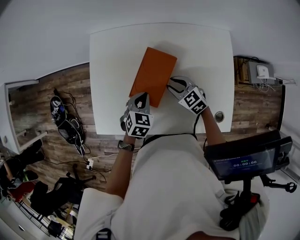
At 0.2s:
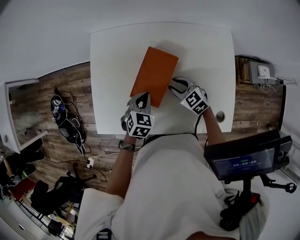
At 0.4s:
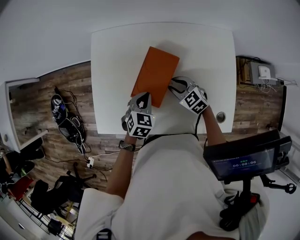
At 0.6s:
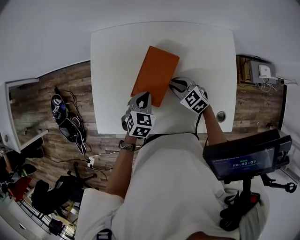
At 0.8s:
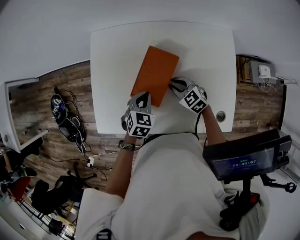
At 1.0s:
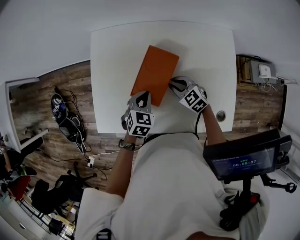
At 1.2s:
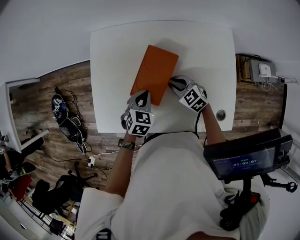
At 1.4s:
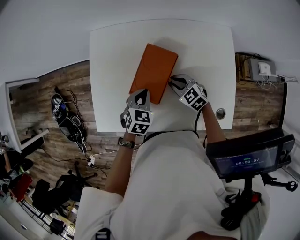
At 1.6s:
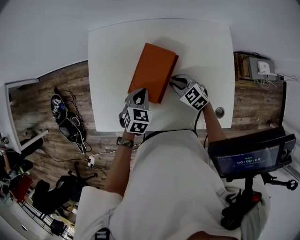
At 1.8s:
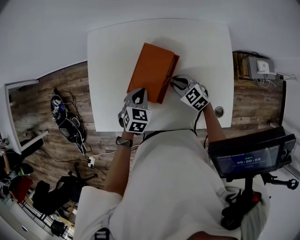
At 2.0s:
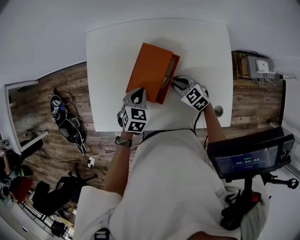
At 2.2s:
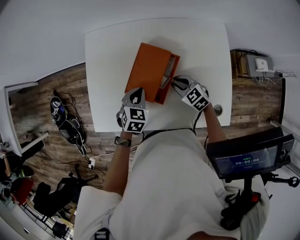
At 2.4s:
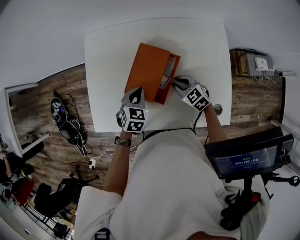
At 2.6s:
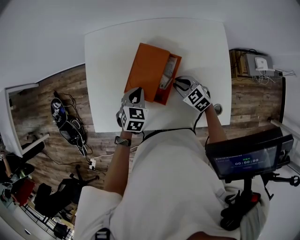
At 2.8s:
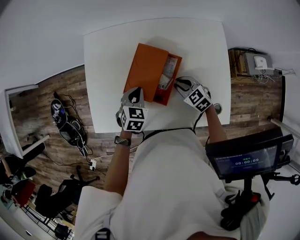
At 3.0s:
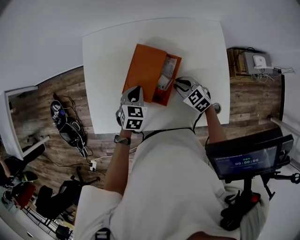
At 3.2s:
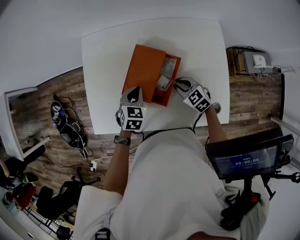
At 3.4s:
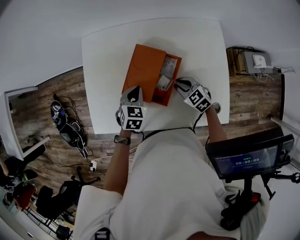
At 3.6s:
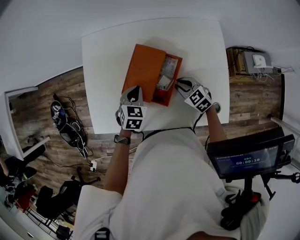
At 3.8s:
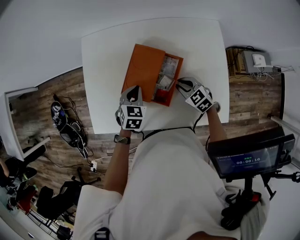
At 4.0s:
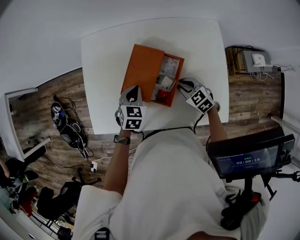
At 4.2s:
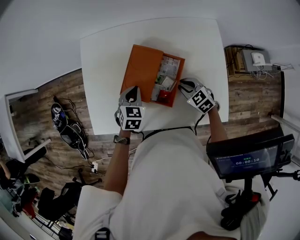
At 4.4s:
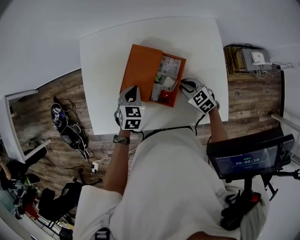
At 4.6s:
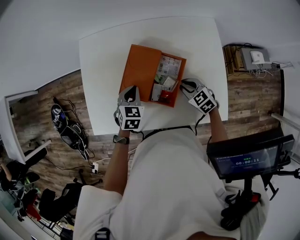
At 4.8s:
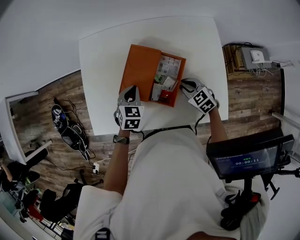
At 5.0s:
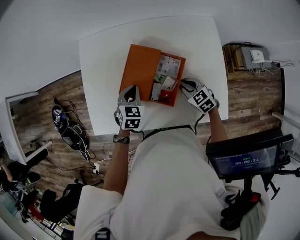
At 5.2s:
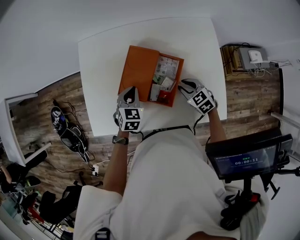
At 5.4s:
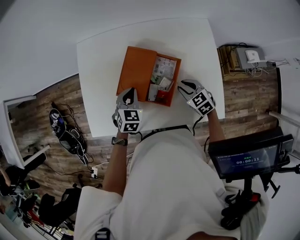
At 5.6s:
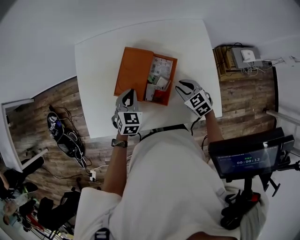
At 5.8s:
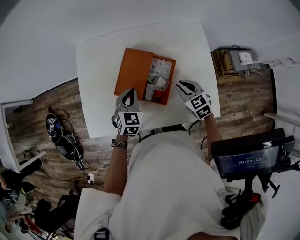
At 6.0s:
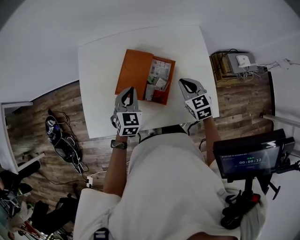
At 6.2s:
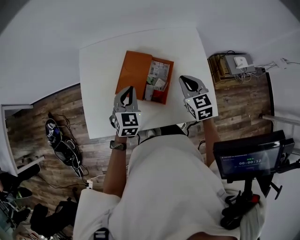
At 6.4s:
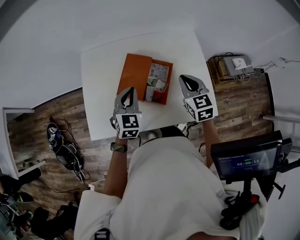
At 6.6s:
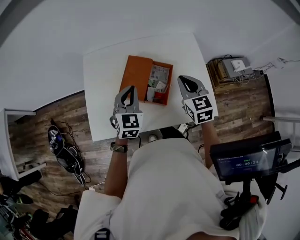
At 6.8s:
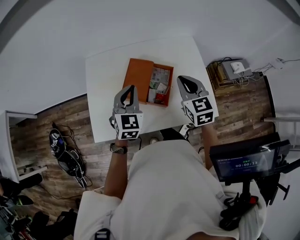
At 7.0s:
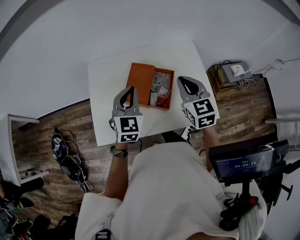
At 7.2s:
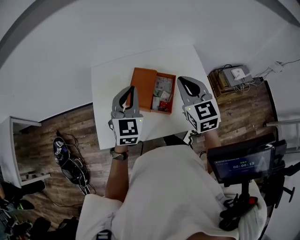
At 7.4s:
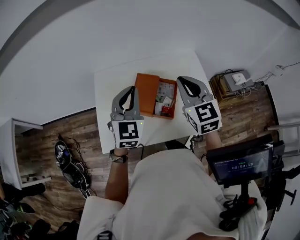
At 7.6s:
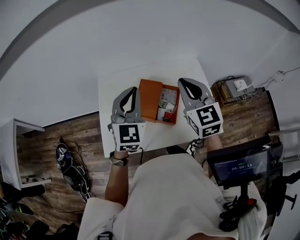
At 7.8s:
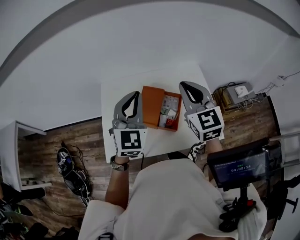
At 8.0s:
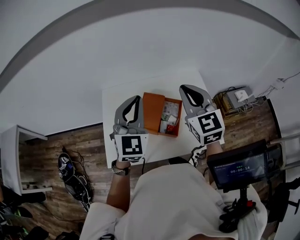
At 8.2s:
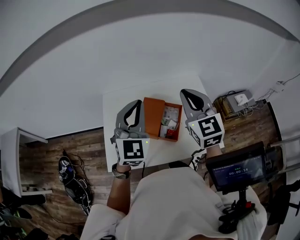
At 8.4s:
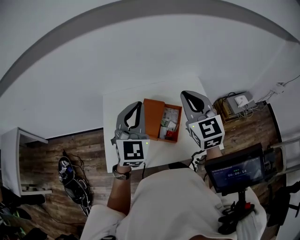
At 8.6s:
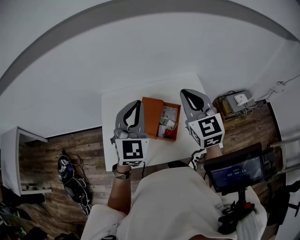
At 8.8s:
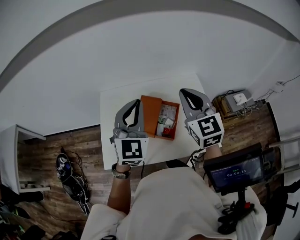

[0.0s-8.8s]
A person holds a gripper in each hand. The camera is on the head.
0.0s to 1.4s: The grippers move only a little.
1.4s to 3.0s: The right gripper shifts by some 5 cm.
3.0s to 4.4s: There are only small adjustments of the grippers.
4.4s to 5.8s: The right gripper goes some 10 cm upward. Meanwhile the left gripper goes some 5 cm upward.
5.8s to 7.4s: The grippers both shift upward by approximately 30 cm. The left gripper swivels roughly 30 degrees, while the right gripper changes its angle by approximately 30 degrees.
7.4s to 8.8s: The two grippers go roughly 5 cm upward.

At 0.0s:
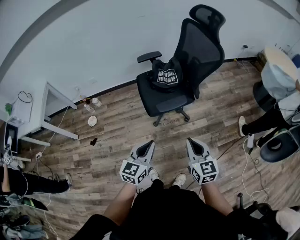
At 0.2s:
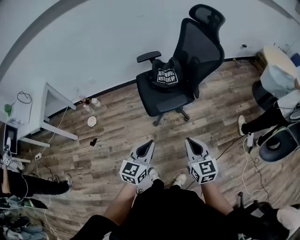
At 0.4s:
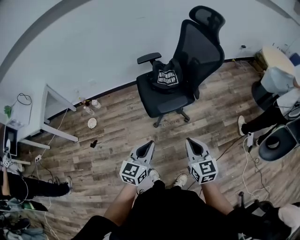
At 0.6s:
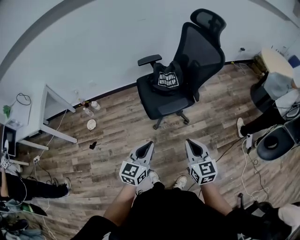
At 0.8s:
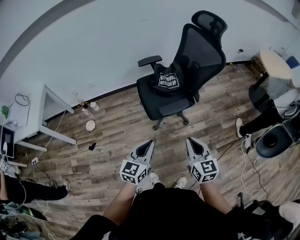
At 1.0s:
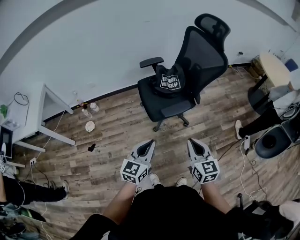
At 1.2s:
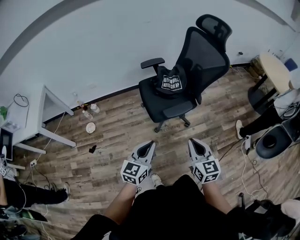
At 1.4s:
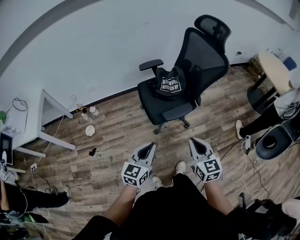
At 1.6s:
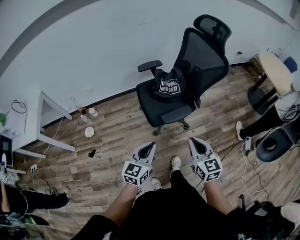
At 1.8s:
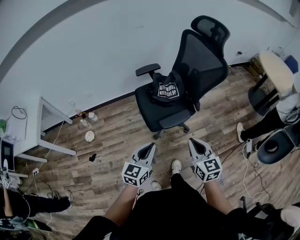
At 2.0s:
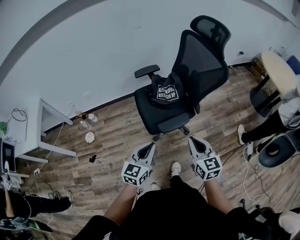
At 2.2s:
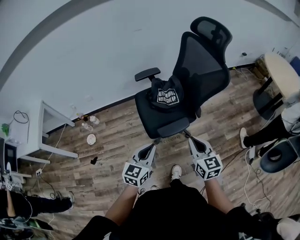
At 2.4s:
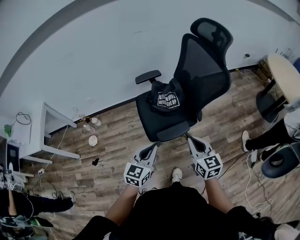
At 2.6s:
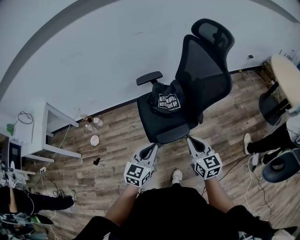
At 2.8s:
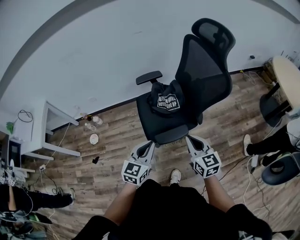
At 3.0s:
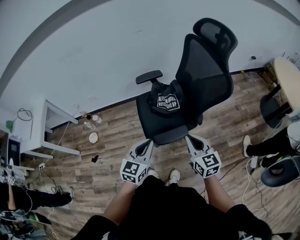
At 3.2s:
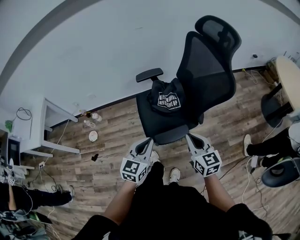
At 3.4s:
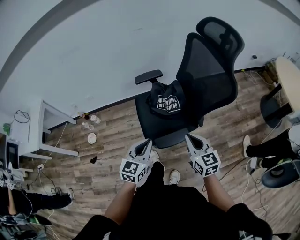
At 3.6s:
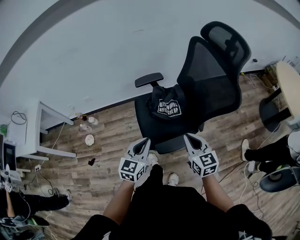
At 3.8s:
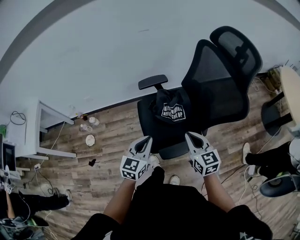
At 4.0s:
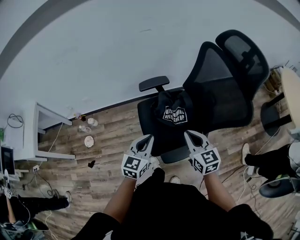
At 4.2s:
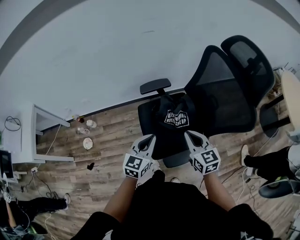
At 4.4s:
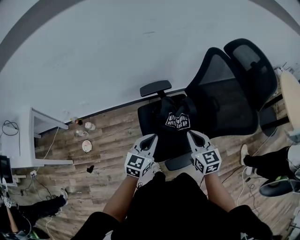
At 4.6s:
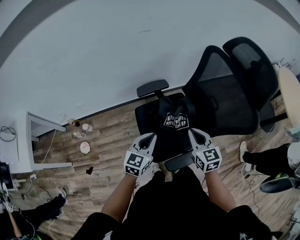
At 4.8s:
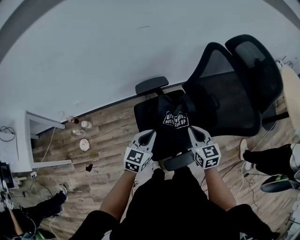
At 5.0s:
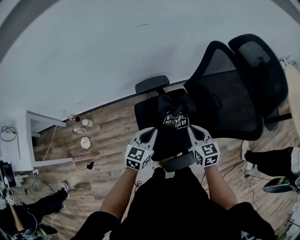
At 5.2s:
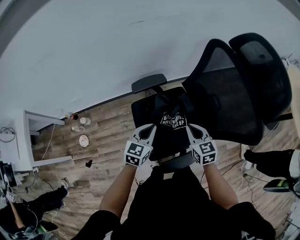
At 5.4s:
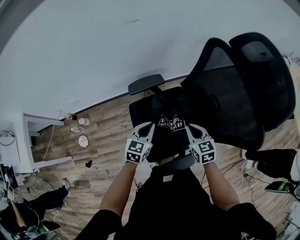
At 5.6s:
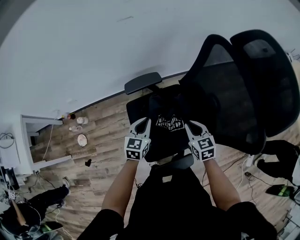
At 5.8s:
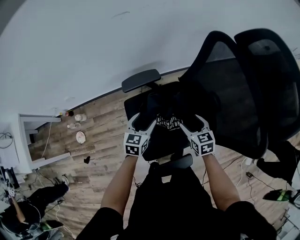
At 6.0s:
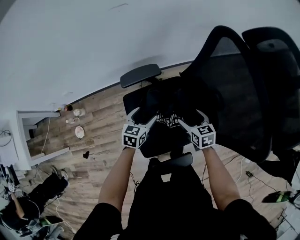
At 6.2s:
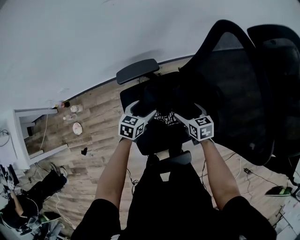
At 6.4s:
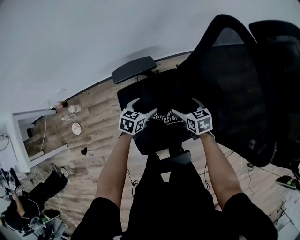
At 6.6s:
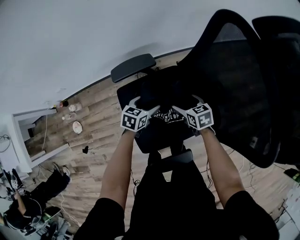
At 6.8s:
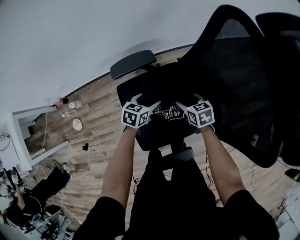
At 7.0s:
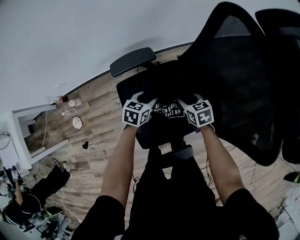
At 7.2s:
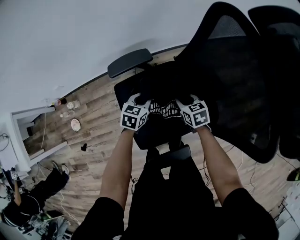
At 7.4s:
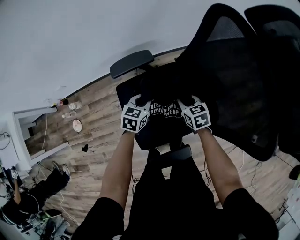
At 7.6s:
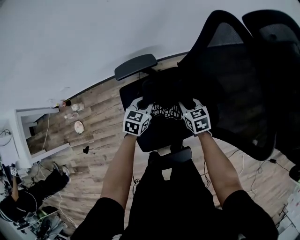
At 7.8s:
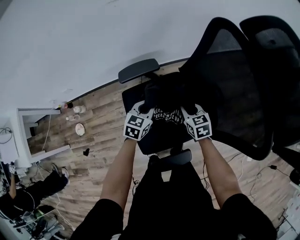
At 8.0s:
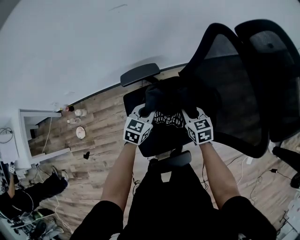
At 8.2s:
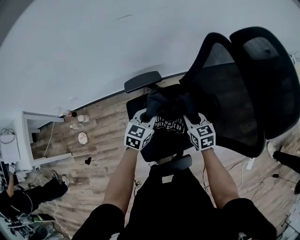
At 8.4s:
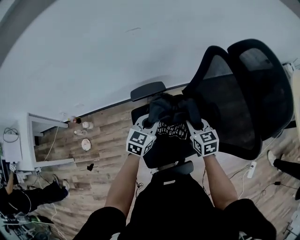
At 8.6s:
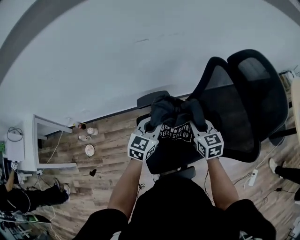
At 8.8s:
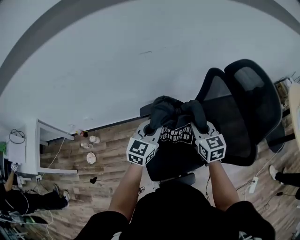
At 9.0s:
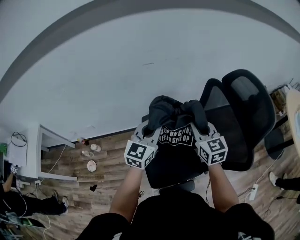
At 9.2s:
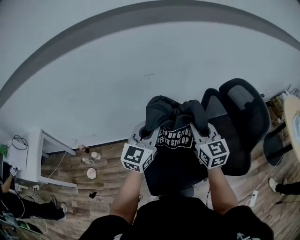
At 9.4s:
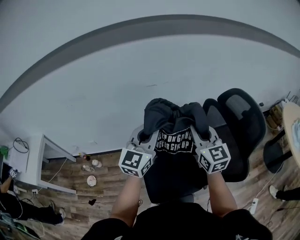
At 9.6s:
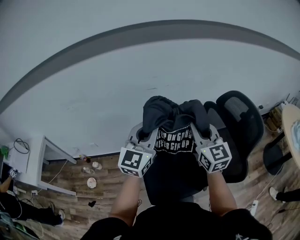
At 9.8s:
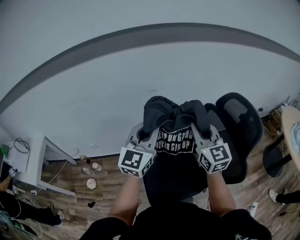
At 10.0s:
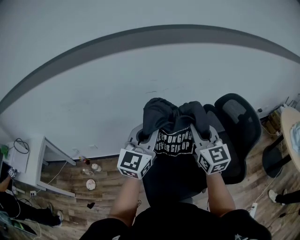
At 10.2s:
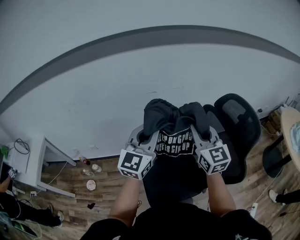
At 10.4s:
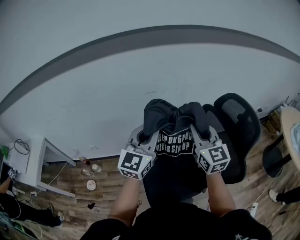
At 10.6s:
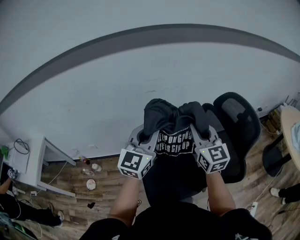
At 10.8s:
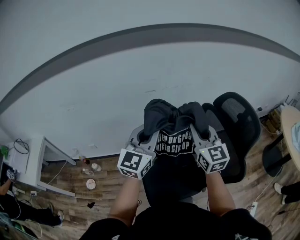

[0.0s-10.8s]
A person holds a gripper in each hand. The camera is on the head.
0.0s to 1.6s: Both grippers travel together to the left and forward, roughly 10 cm.
1.6s to 3.0s: The left gripper is displaced forward and to the right by about 20 cm, while the right gripper travels forward by about 20 cm.
3.0s to 4.6s: The grippers both shift forward by approximately 25 cm.
4.6s to 6.2s: The two grippers go about 25 cm downward and forward. The left gripper rotates about 20 degrees, and opens its fingers; the right gripper swivels about 30 degrees, and opens up.
6.2s to 7.8s: The left gripper closes up, while the right gripper closes its fingers.
7.8s to 9.2s: Both grippers travel together upward, approximately 40 cm. The right gripper tips its fingers upward by about 40 degrees. Meanwhile the left gripper tilts its fingers some 40 degrees upward.
9.2s to 10.8s: The grippers both shift upward by about 10 cm.

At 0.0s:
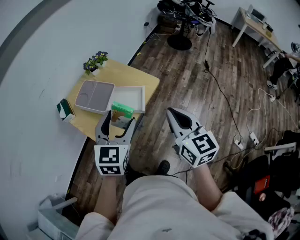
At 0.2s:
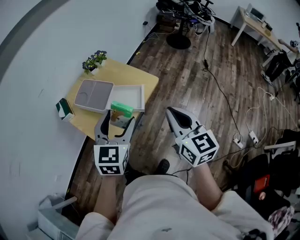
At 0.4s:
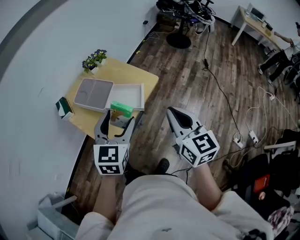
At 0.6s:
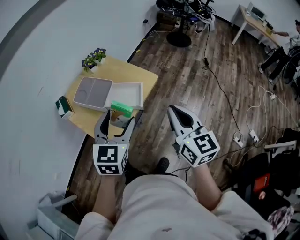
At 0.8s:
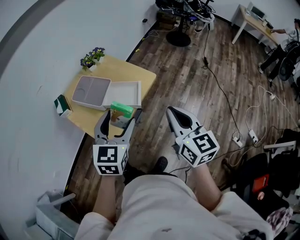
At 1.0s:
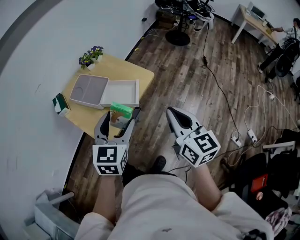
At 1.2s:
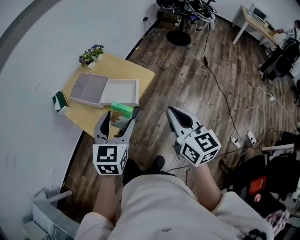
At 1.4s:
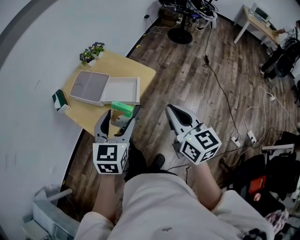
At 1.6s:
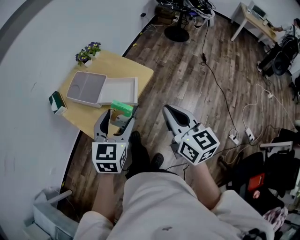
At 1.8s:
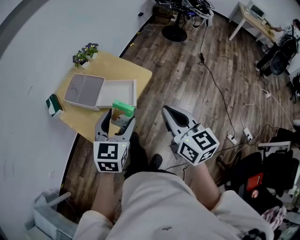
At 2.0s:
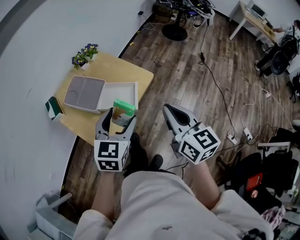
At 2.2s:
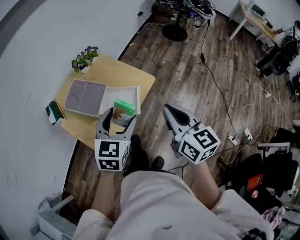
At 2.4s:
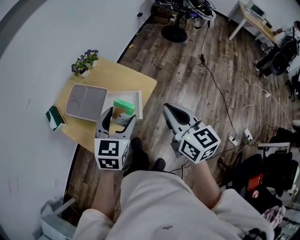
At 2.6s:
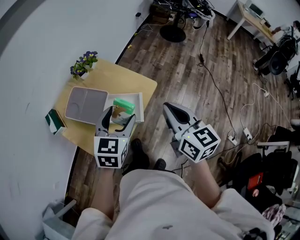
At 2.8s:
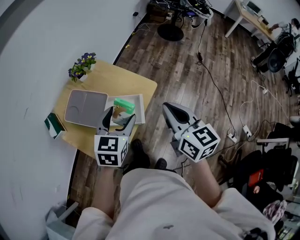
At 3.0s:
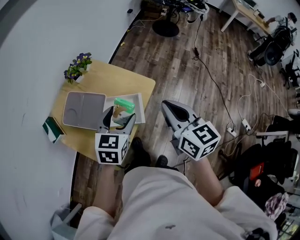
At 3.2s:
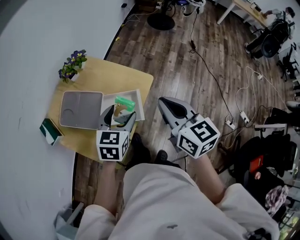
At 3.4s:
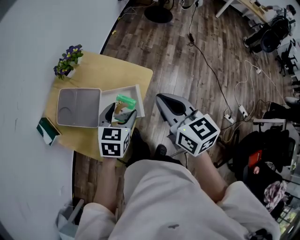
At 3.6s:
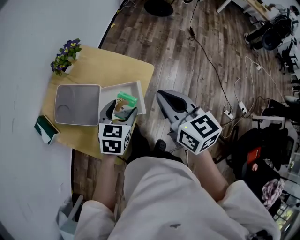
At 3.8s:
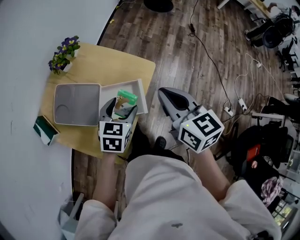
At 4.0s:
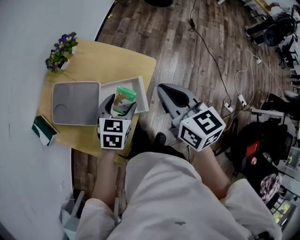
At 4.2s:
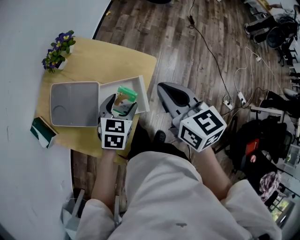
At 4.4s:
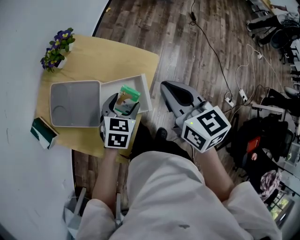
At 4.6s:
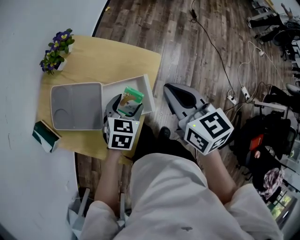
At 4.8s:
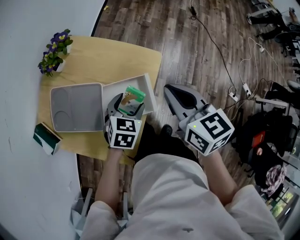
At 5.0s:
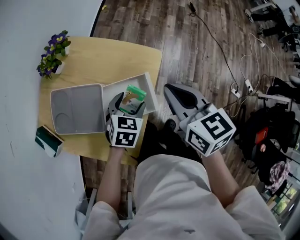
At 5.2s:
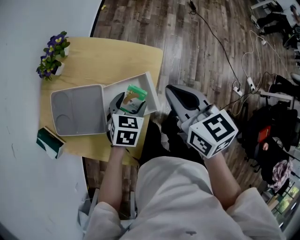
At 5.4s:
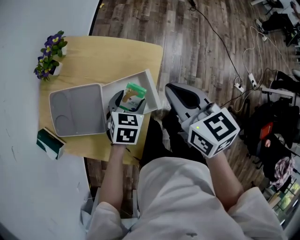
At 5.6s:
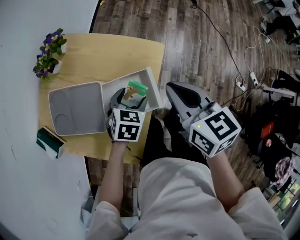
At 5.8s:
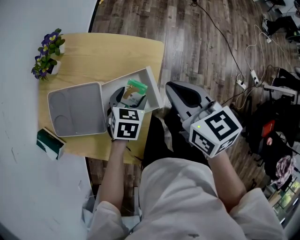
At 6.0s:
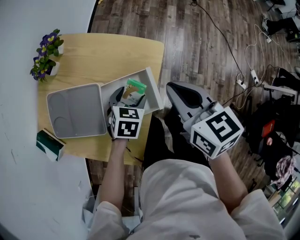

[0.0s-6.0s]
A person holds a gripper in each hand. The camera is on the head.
0.0s to 1.6s: The grippers make only small movements.
1.6s to 3.0s: Both grippers travel together forward, about 15 cm.
3.0s to 4.4s: The right gripper moves downward and forward, approximately 10 cm. Meanwhile the left gripper goes approximately 15 cm downward.
4.4s to 6.0s: The grippers both shift downward by approximately 5 cm.
